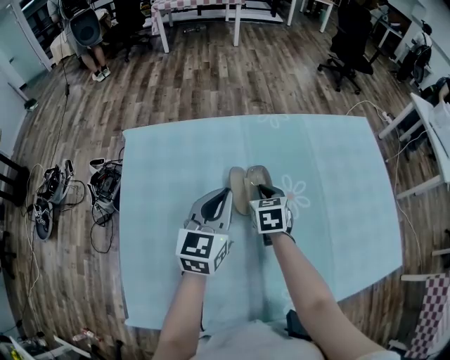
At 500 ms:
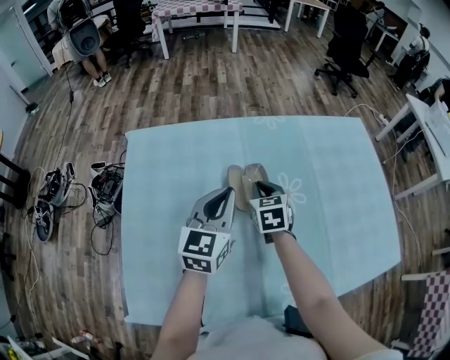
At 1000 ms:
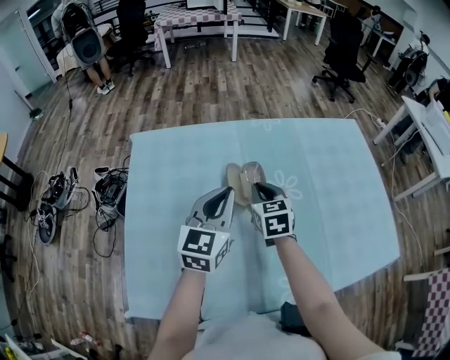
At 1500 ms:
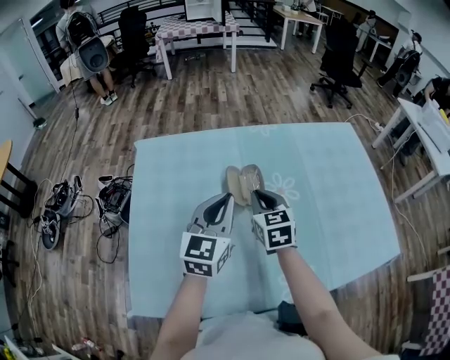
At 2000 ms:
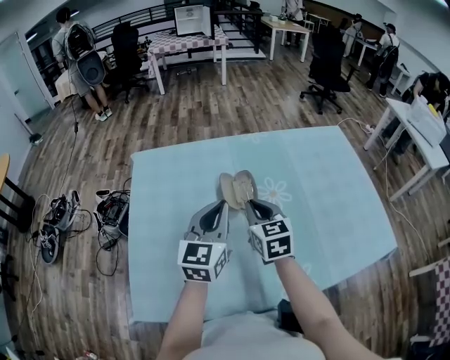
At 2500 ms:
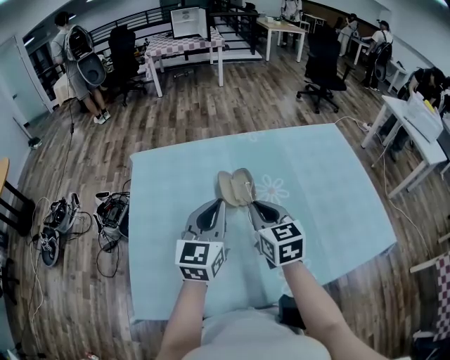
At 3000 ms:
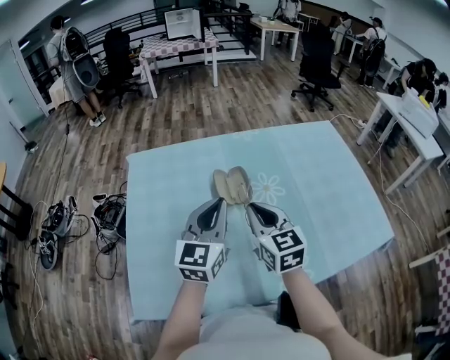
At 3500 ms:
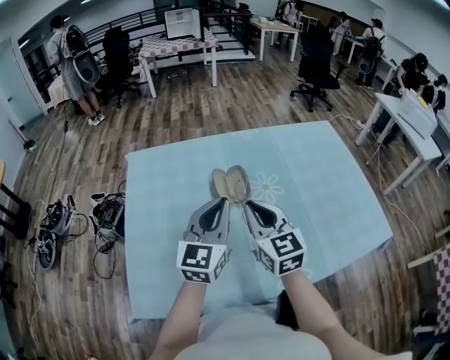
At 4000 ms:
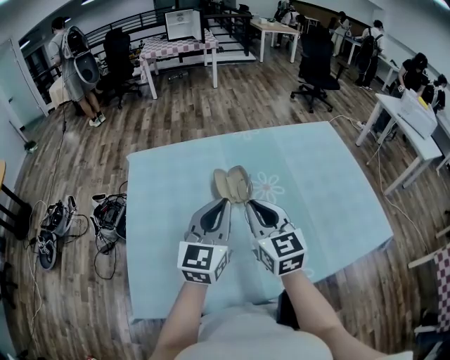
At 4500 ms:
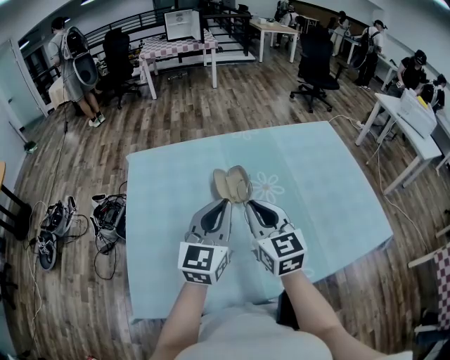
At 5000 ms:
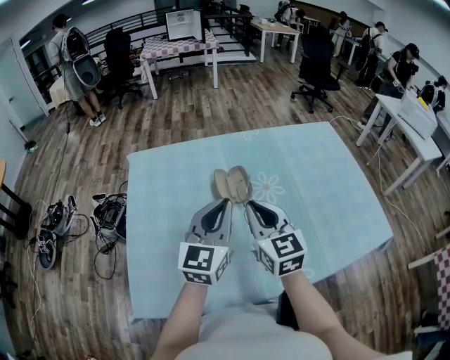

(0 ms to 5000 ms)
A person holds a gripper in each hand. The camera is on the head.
0 ms - 2500 ms: The right gripper goes roughly 25 cm upward and backward, and changes its angle by about 20 degrees. Meanwhile the left gripper goes roughly 15 cm backward and upward.
2500 ms - 5000 ms: The right gripper changes place by approximately 5 cm.

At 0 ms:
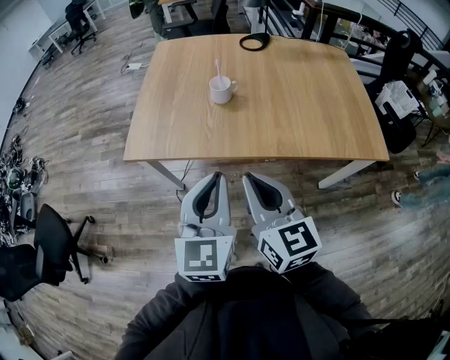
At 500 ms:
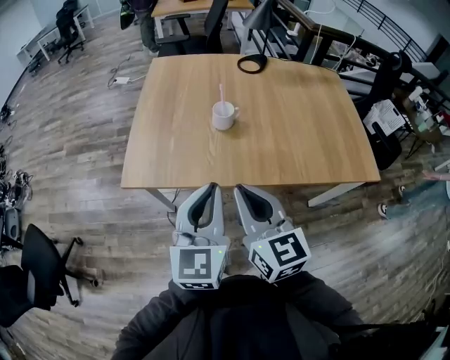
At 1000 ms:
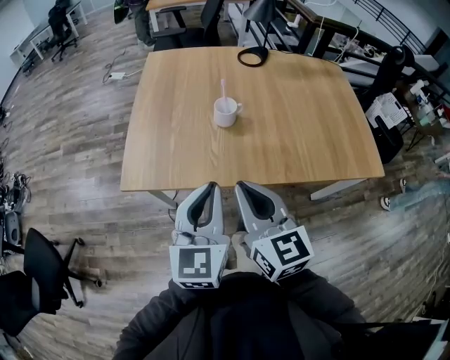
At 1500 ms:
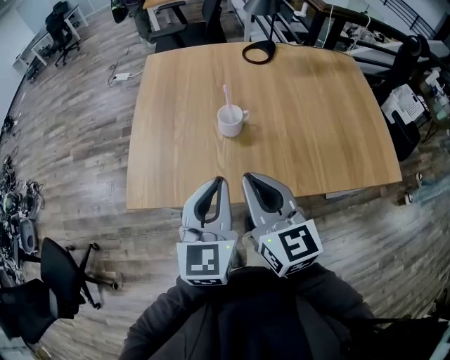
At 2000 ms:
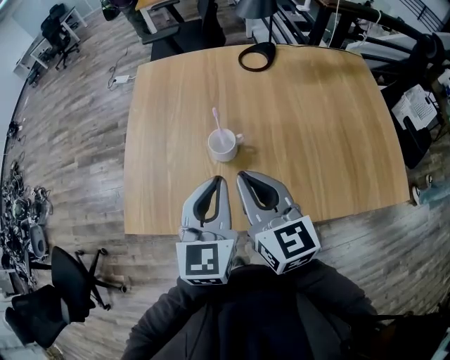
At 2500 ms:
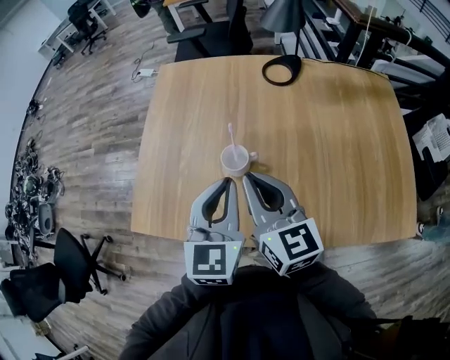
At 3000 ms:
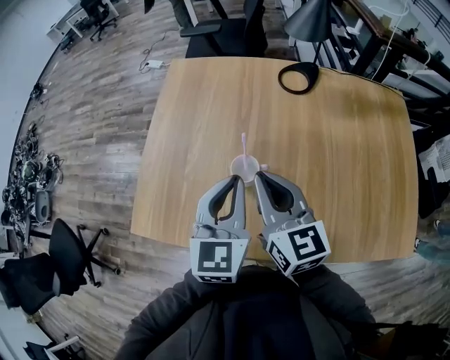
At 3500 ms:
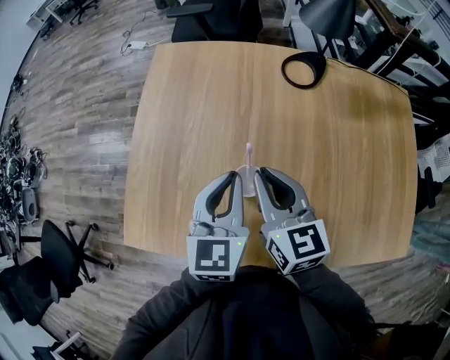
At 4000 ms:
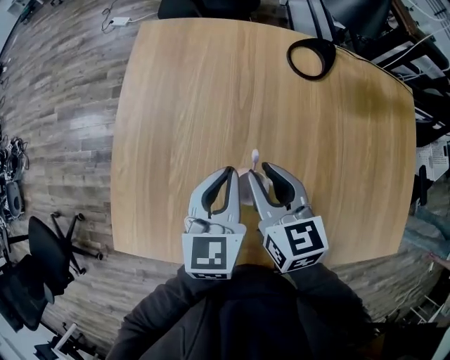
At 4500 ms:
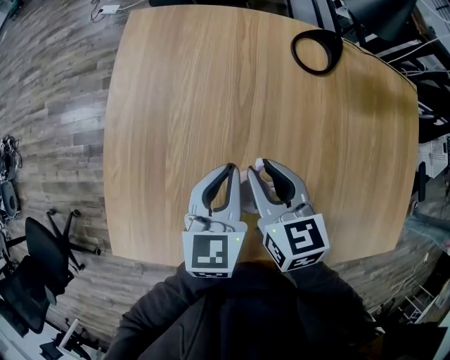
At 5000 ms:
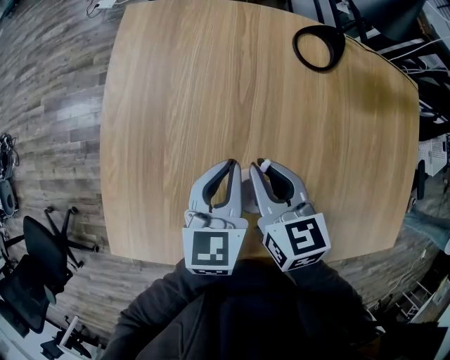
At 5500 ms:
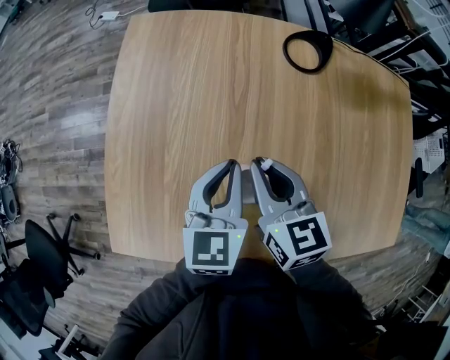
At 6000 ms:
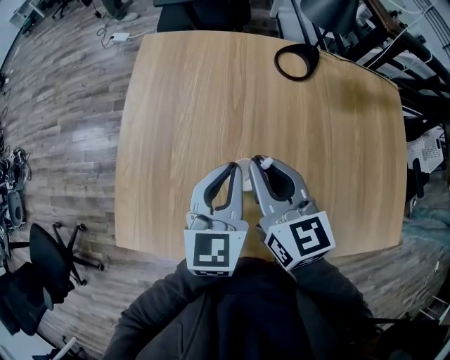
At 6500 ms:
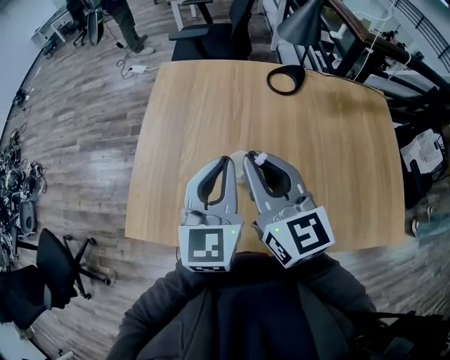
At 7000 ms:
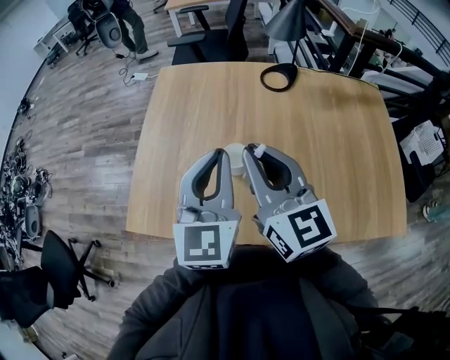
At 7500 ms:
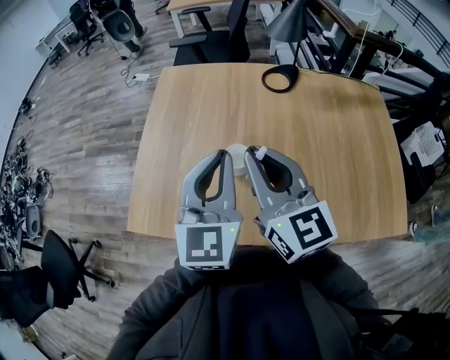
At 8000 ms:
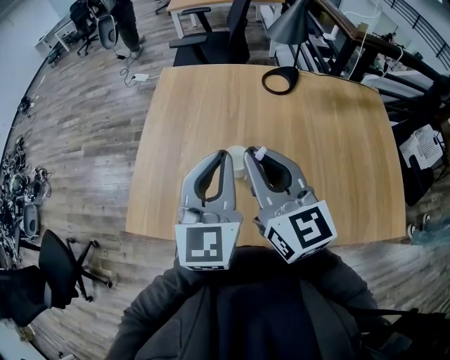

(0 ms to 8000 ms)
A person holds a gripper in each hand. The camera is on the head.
0 ms - 2000 ms: Both grippers move forward, approximately 30 cm.
2000 ms - 4000 ms: The grippers both shift forward and downward by approximately 25 cm. The right gripper rotates approximately 20 degrees, and opens up.
4000 ms - 6000 ms: The left gripper moves approximately 5 cm. Meanwhile the right gripper shifts roughly 10 cm upward, and closes.
6000 ms - 8000 ms: The left gripper travels upward and backward by some 15 cm, while the right gripper moves backward and upward, roughly 15 cm.

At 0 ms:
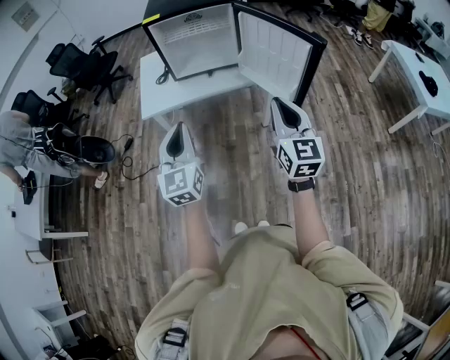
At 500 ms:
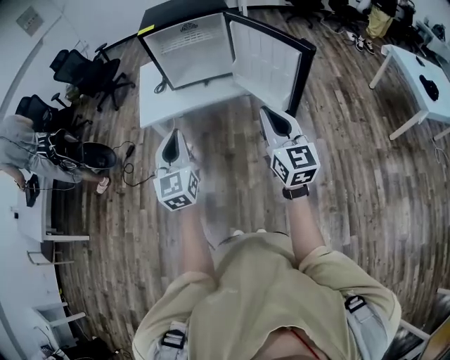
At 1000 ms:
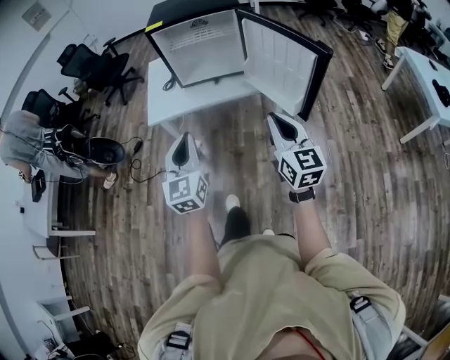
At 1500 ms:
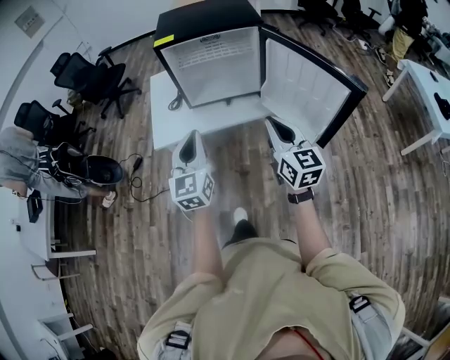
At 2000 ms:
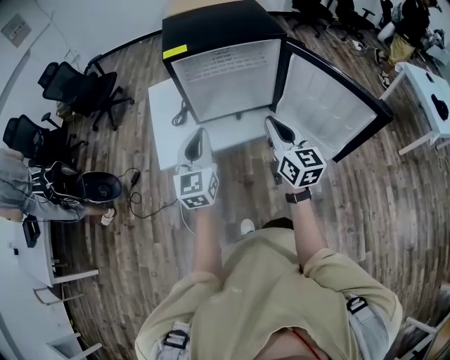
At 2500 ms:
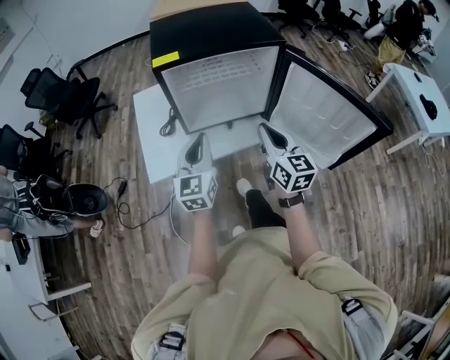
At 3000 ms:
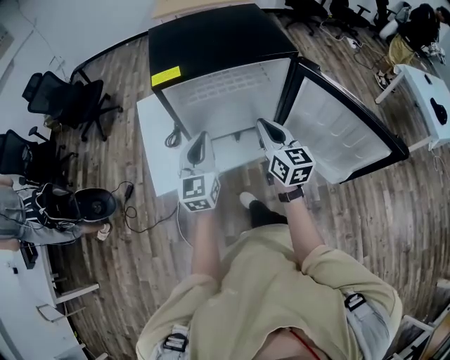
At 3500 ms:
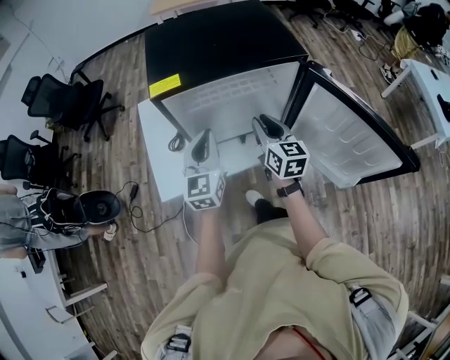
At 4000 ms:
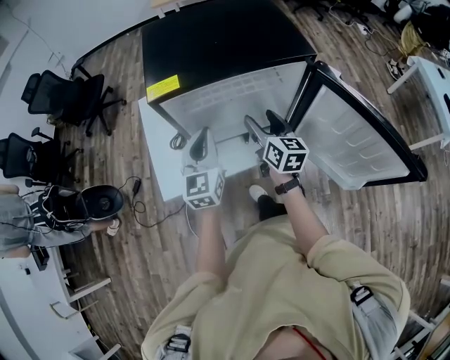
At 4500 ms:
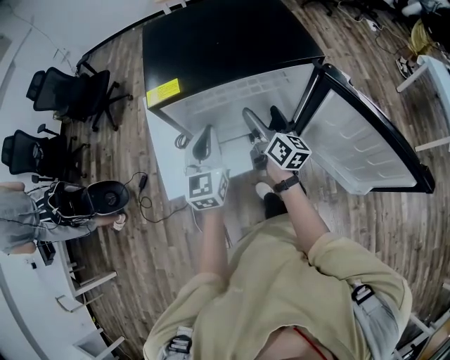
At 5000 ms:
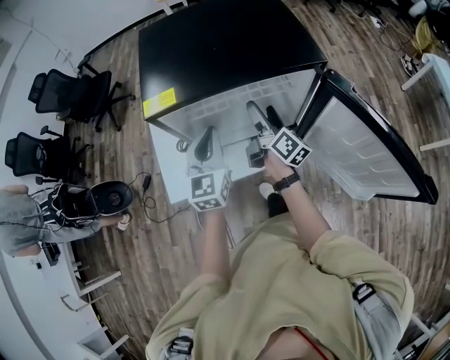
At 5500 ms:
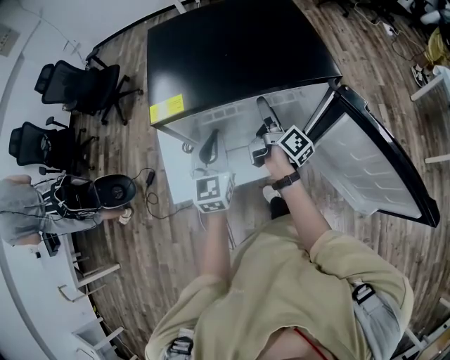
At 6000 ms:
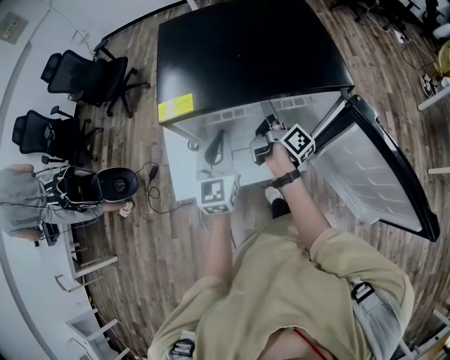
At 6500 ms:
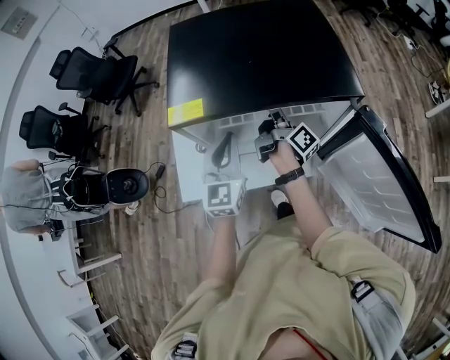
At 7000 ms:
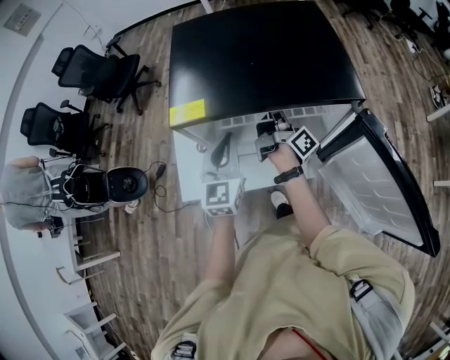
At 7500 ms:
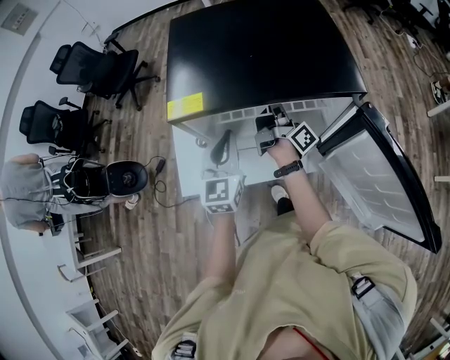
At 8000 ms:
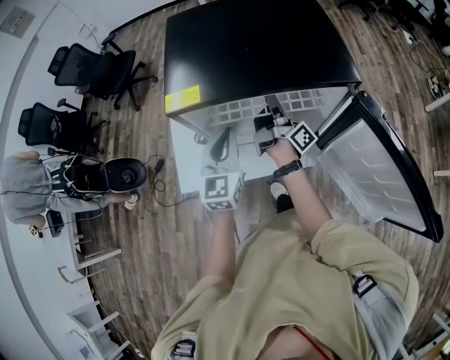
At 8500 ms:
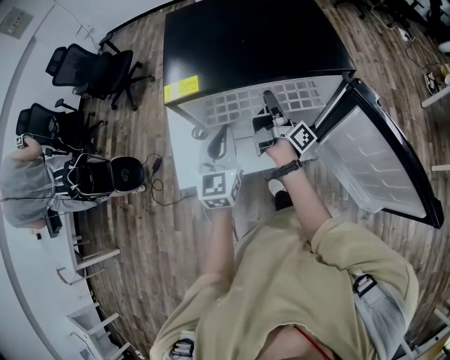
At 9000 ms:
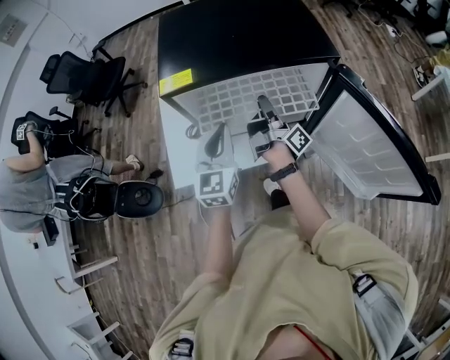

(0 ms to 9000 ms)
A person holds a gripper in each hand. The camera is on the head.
0 ms - 2000 ms: The left gripper goes roughly 30 cm forward, while the right gripper heads forward and to the left, covering approximately 35 cm.
2000 ms - 4500 ms: The grippers both shift forward by about 25 cm. The right gripper turns by approximately 30 degrees, and opens up.
4500 ms - 7000 ms: The right gripper is displaced forward by roughly 10 cm, rolls clockwise, seen from behind, by approximately 40 degrees, and closes its fingers.
7000 ms - 9000 ms: Both grippers move backward, roughly 10 cm.

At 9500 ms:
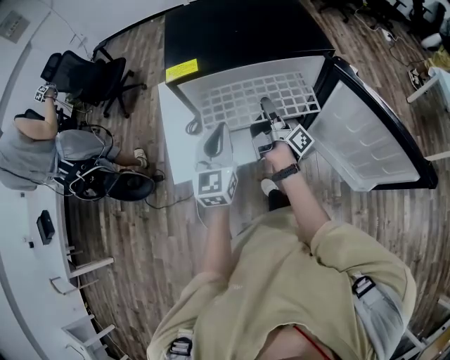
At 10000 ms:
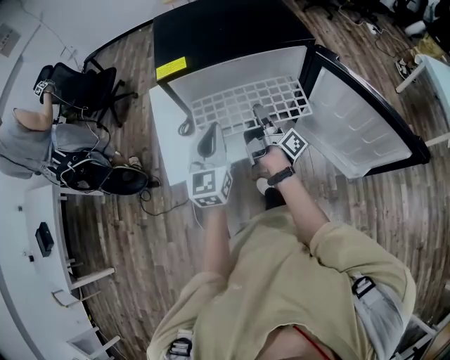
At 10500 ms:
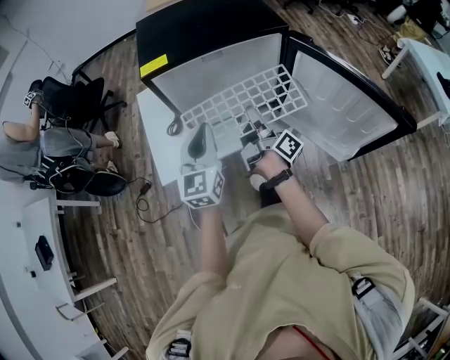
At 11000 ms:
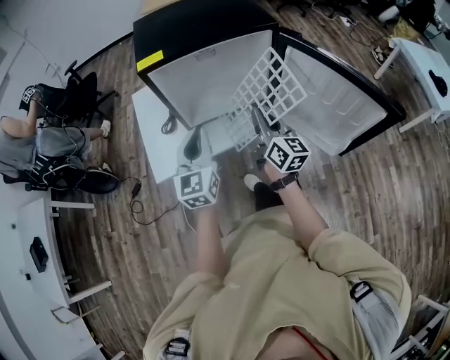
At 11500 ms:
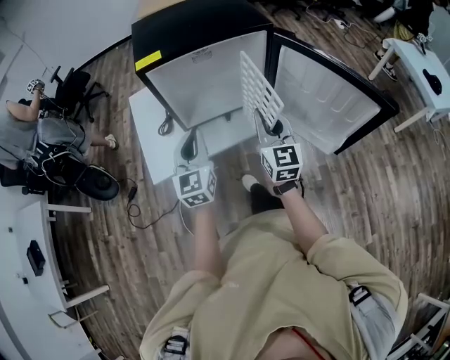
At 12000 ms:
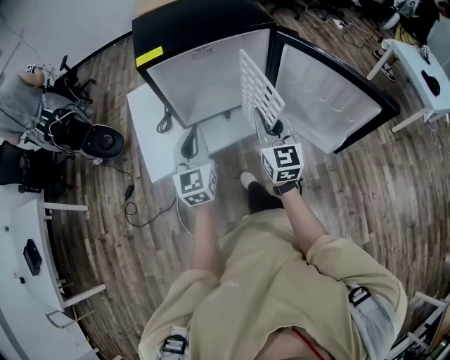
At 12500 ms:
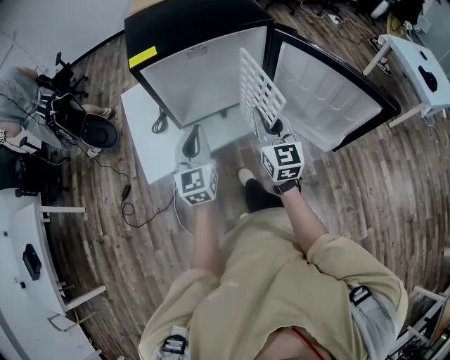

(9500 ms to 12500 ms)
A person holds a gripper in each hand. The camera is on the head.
9500 ms - 11000 ms: The right gripper shifts some 15 cm backward, and rolls counterclockwise, seen from behind, by roughly 60 degrees. Meanwhile the left gripper moves backward, approximately 5 cm.
11000 ms - 12500 ms: The right gripper rotates roughly 30 degrees.

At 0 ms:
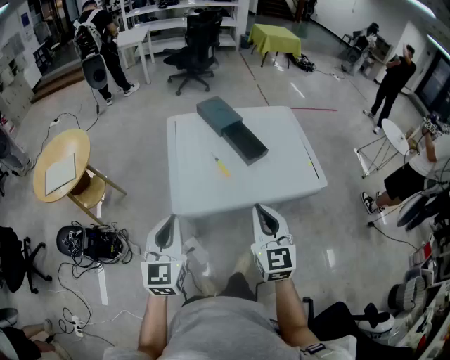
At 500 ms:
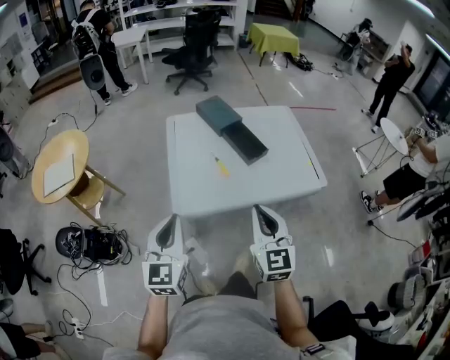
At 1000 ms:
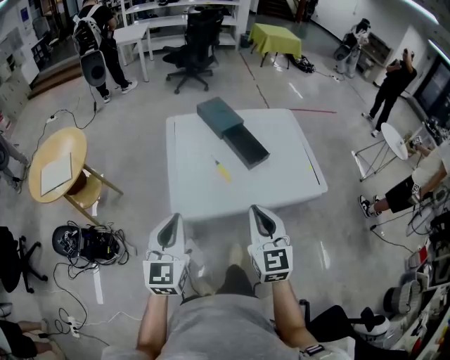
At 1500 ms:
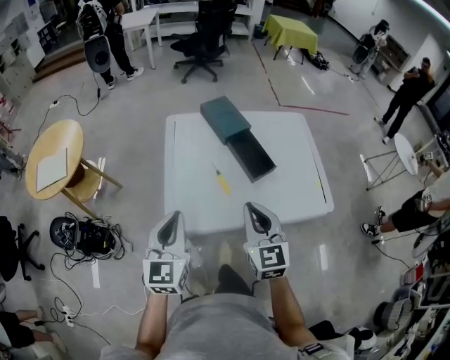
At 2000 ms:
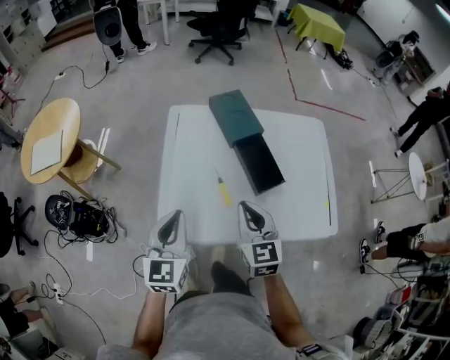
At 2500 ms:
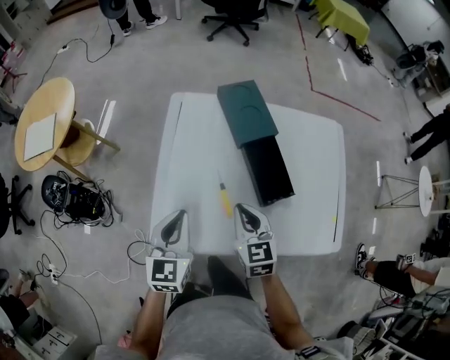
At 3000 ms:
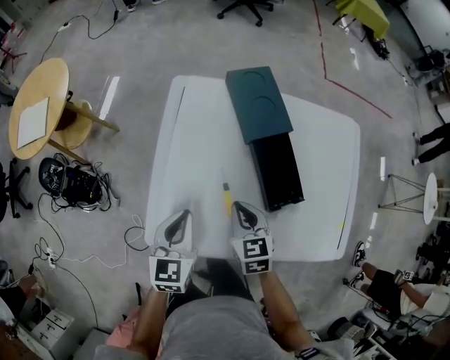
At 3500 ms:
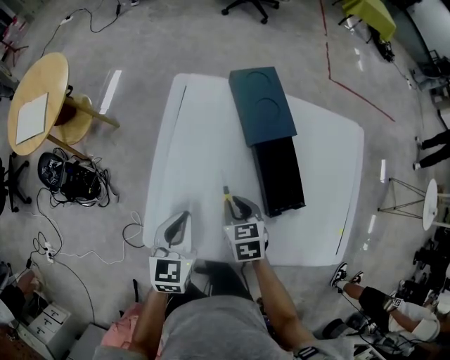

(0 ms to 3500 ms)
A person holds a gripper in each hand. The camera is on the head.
0 ms - 2000 ms: The grippers both shift forward by some 20 cm.
2000 ms - 3500 ms: Both grippers move downward and forward, about 20 cm. The right gripper tilts its fingers about 30 degrees downward.
